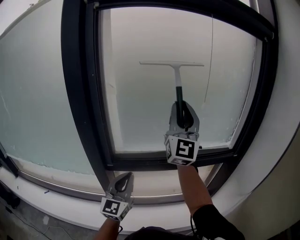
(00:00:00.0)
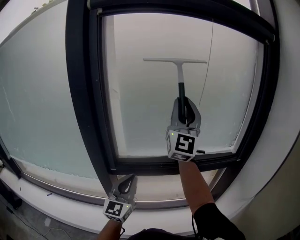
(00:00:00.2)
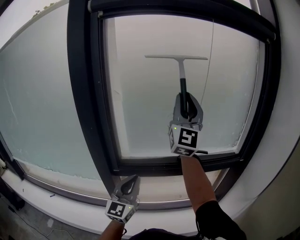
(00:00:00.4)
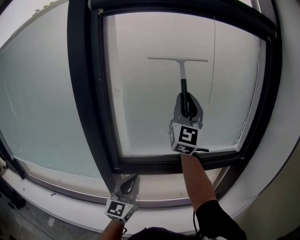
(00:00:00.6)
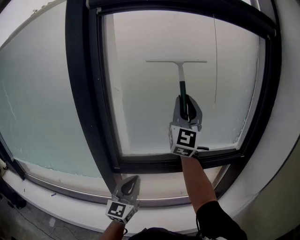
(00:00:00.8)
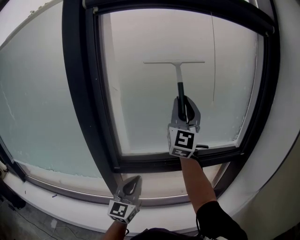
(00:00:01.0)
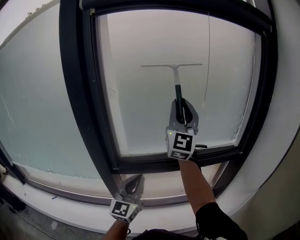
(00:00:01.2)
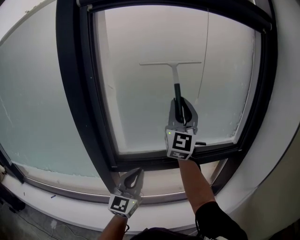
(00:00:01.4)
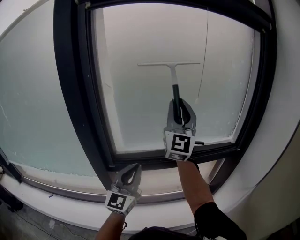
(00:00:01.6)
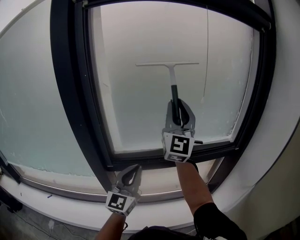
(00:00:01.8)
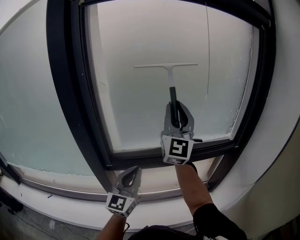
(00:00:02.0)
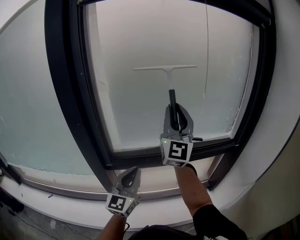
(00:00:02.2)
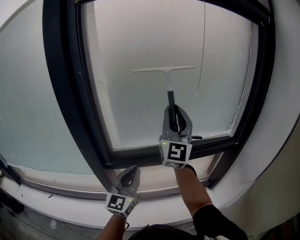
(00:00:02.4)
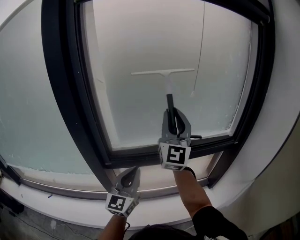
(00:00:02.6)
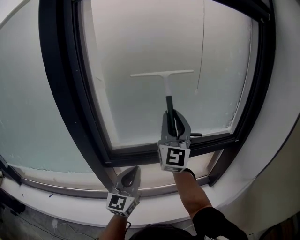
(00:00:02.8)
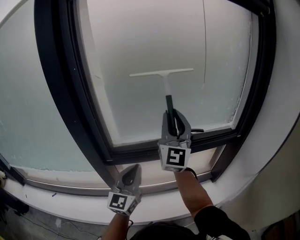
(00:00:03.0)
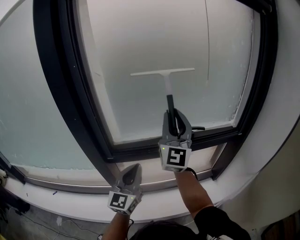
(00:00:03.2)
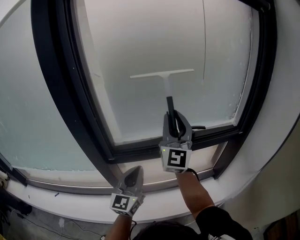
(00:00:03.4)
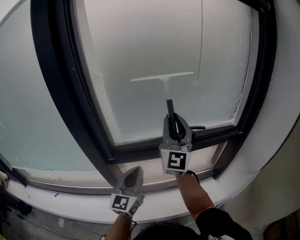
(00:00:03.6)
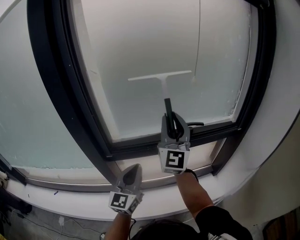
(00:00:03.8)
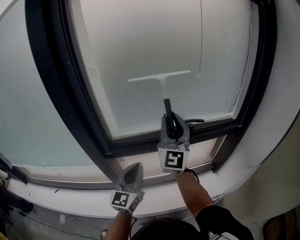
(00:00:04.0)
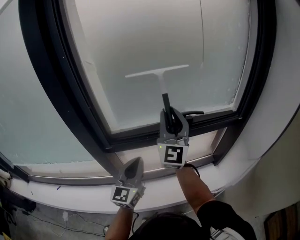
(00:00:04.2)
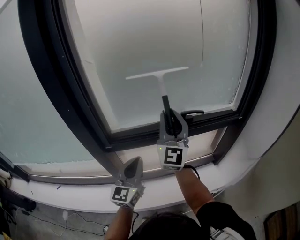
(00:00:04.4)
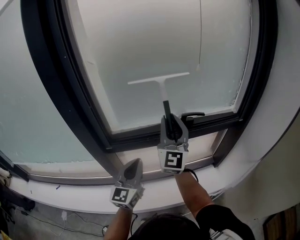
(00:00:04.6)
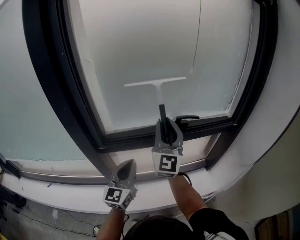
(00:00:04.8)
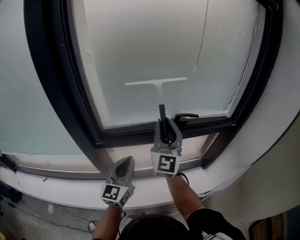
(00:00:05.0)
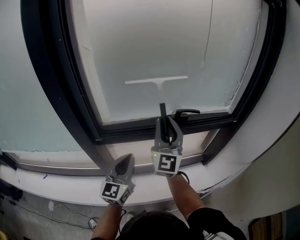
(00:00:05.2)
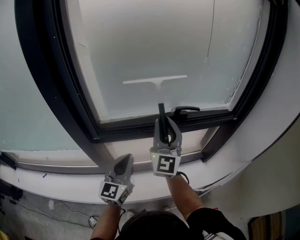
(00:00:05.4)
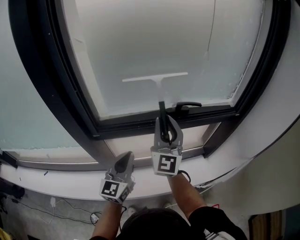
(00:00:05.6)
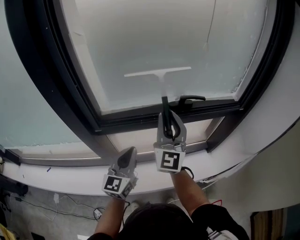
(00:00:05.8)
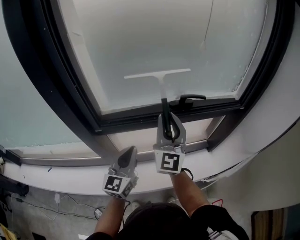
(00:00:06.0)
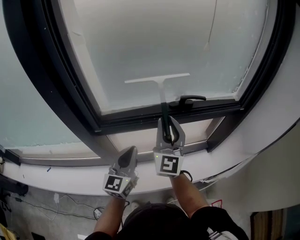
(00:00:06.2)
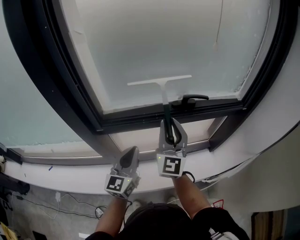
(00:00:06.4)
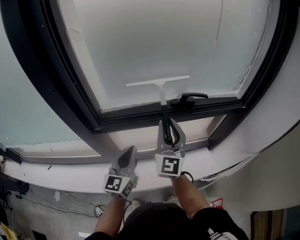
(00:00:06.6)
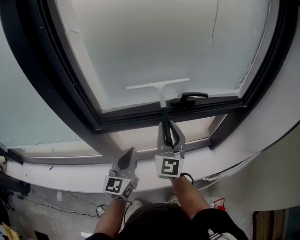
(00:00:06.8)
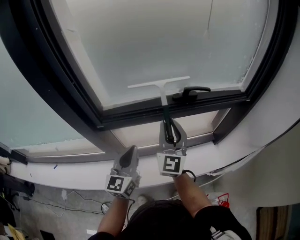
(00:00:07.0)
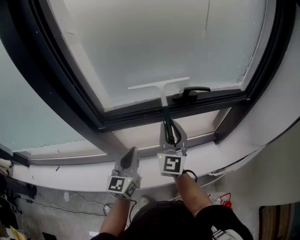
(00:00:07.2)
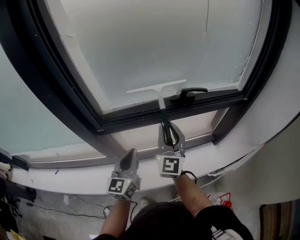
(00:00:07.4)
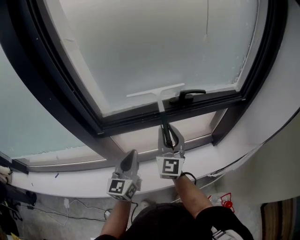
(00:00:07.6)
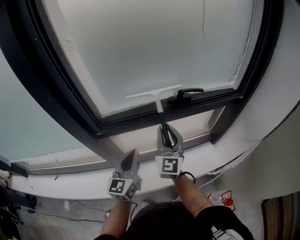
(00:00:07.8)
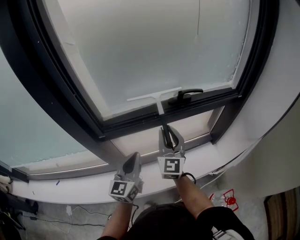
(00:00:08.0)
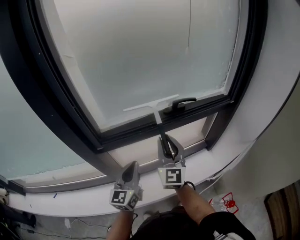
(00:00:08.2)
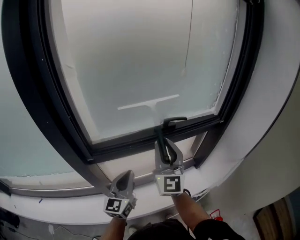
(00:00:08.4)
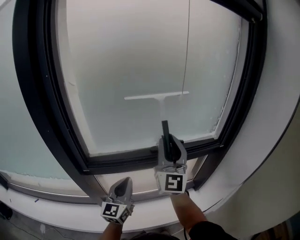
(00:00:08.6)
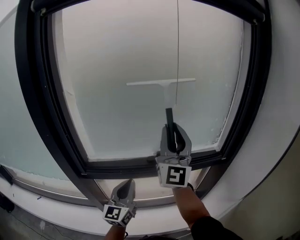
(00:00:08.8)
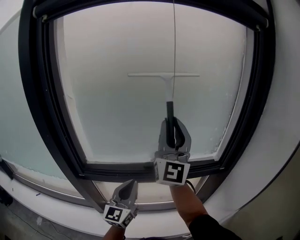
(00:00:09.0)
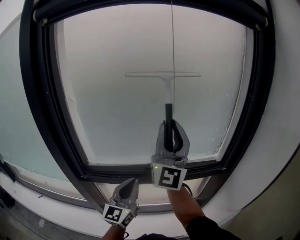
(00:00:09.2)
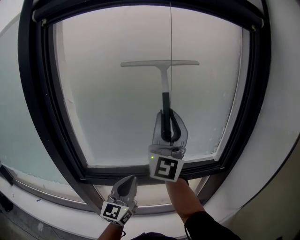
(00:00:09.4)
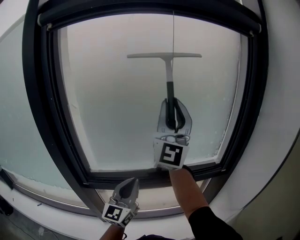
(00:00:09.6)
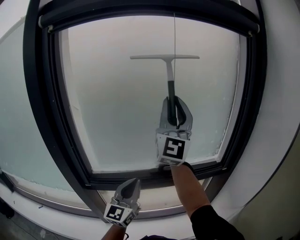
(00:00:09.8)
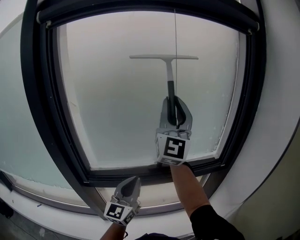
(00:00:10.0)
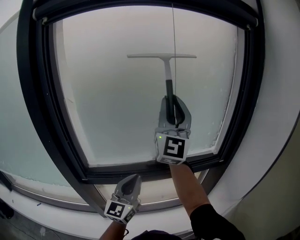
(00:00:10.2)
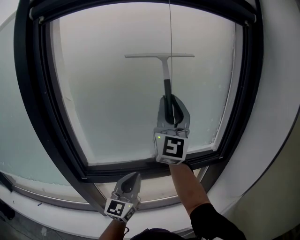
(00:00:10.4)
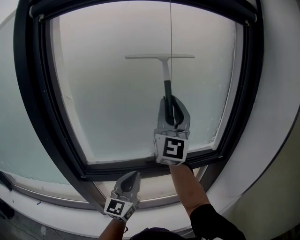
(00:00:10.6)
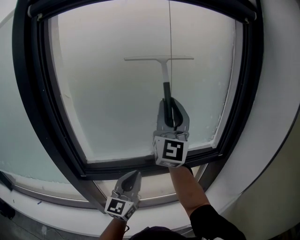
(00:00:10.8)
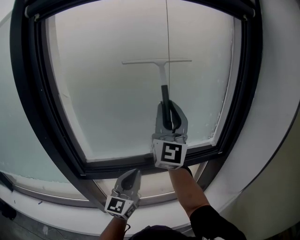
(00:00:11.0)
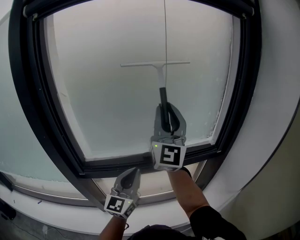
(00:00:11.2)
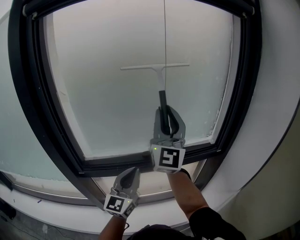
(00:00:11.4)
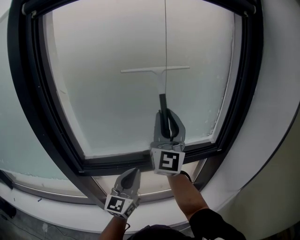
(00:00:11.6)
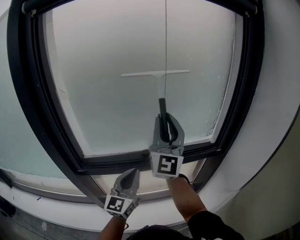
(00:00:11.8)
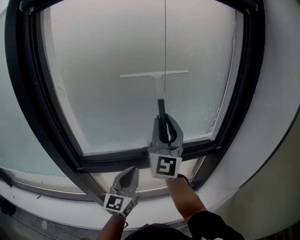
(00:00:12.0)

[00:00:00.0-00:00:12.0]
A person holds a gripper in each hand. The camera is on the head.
00:00:00.0 to 00:00:01.6: There are only small adjustments of the grippers.
00:00:01.6 to 00:00:03.0: The right gripper travels downward by roughly 10 cm.
00:00:03.0 to 00:00:04.4: The right gripper shifts about 5 cm downward.
00:00:04.4 to 00:00:06.0: The right gripper heads downward, covering roughly 10 cm.
00:00:06.0 to 00:00:07.6: The right gripper heads downward, covering some 10 cm.
00:00:07.6 to 00:00:09.0: The left gripper goes roughly 20 cm to the right, upward and forward. Meanwhile the right gripper moves upward, some 30 cm, and angles its fingers upward, by some 30 degrees.
00:00:09.0 to 00:00:10.4: The right gripper goes some 5 cm upward.
00:00:10.4 to 00:00:12.0: The right gripper heads downward, covering approximately 10 cm.

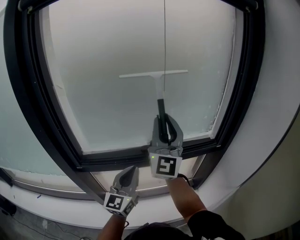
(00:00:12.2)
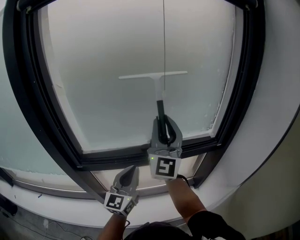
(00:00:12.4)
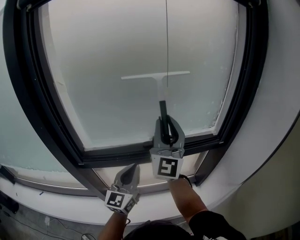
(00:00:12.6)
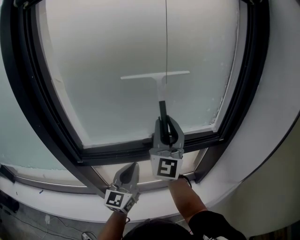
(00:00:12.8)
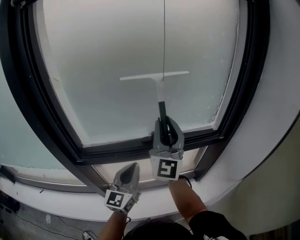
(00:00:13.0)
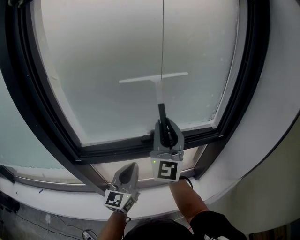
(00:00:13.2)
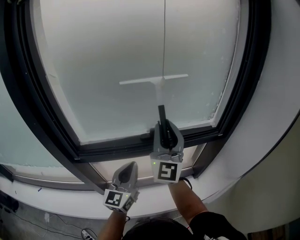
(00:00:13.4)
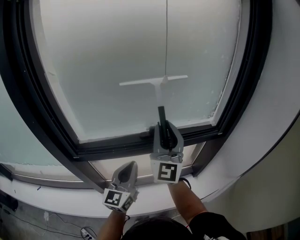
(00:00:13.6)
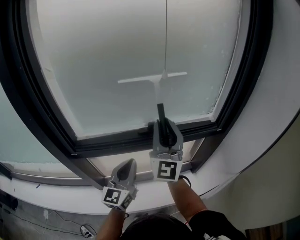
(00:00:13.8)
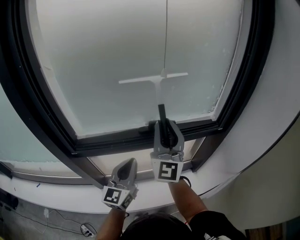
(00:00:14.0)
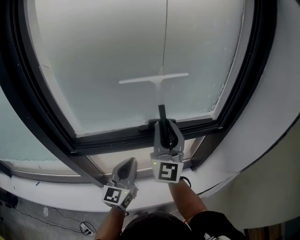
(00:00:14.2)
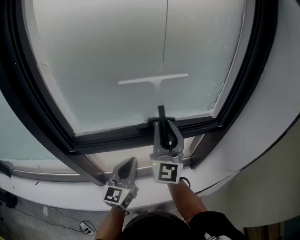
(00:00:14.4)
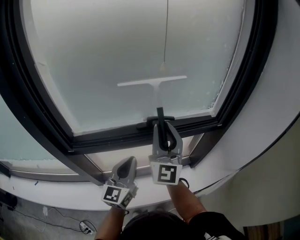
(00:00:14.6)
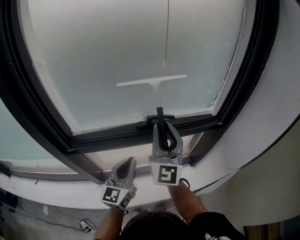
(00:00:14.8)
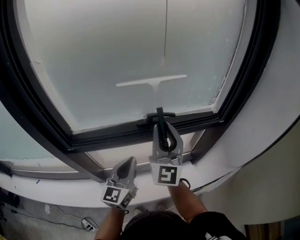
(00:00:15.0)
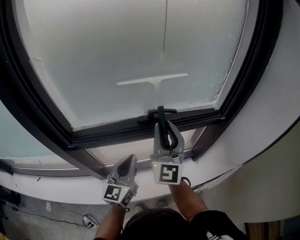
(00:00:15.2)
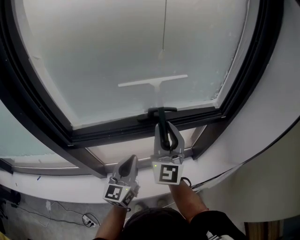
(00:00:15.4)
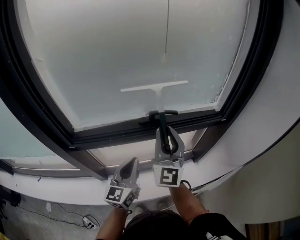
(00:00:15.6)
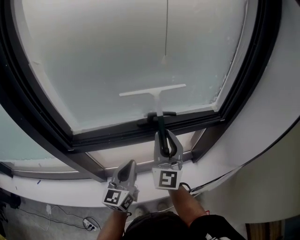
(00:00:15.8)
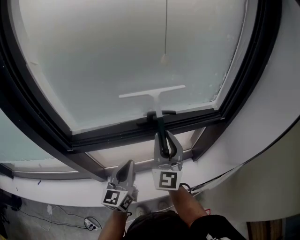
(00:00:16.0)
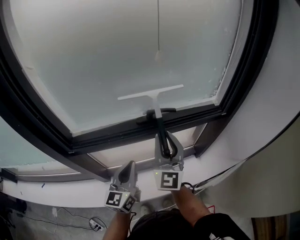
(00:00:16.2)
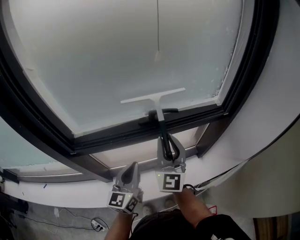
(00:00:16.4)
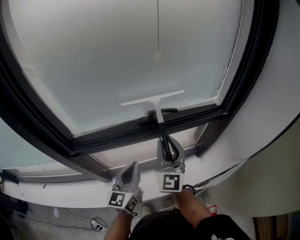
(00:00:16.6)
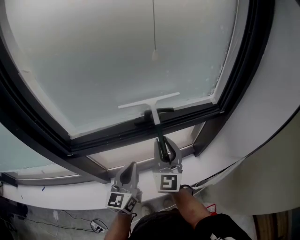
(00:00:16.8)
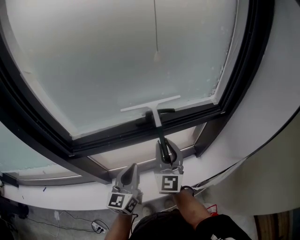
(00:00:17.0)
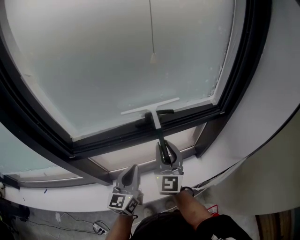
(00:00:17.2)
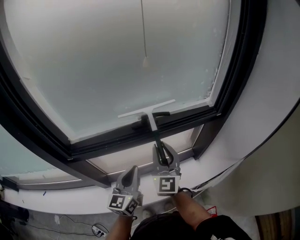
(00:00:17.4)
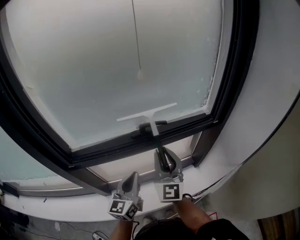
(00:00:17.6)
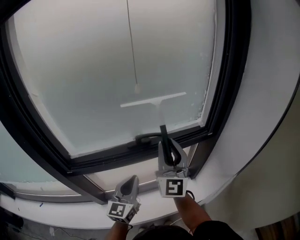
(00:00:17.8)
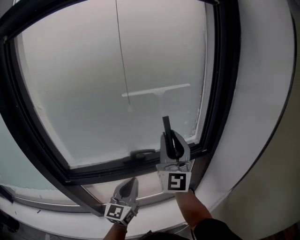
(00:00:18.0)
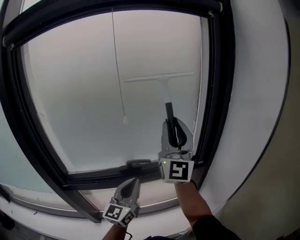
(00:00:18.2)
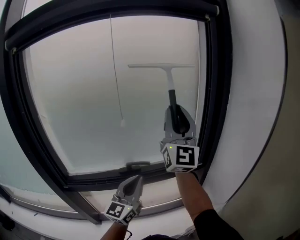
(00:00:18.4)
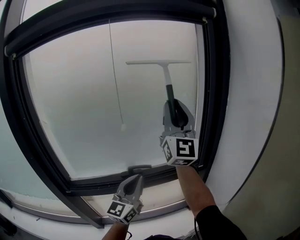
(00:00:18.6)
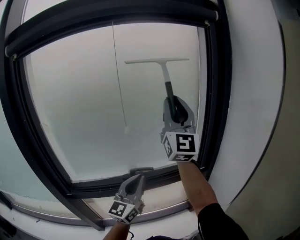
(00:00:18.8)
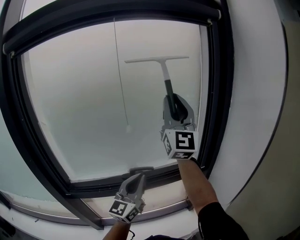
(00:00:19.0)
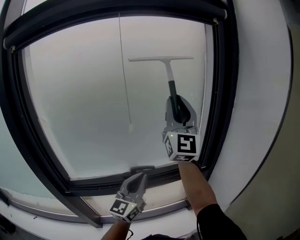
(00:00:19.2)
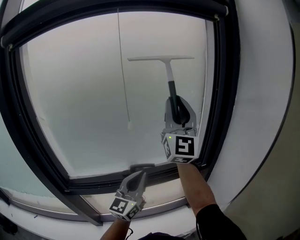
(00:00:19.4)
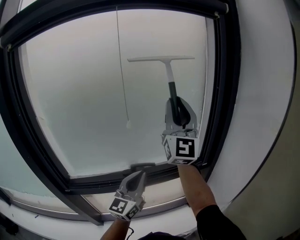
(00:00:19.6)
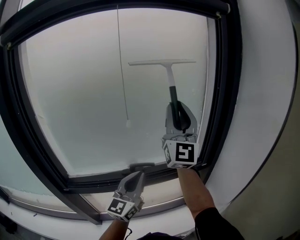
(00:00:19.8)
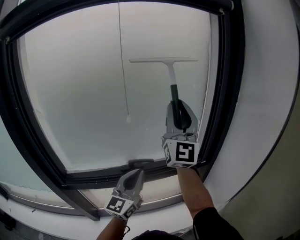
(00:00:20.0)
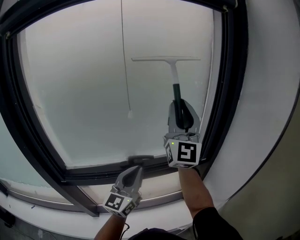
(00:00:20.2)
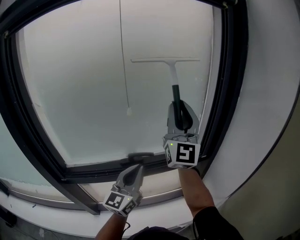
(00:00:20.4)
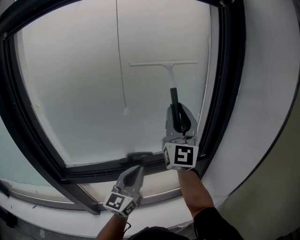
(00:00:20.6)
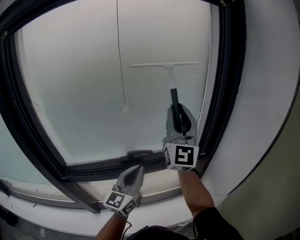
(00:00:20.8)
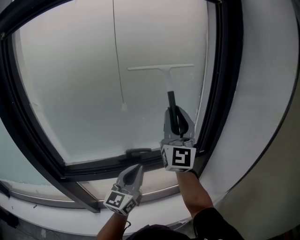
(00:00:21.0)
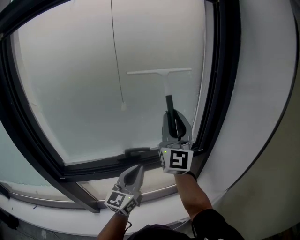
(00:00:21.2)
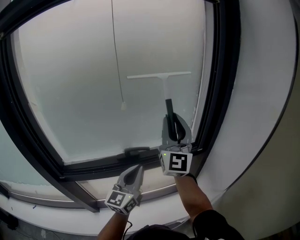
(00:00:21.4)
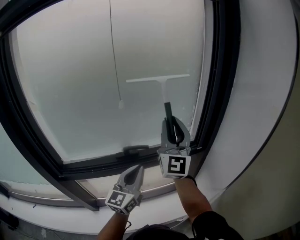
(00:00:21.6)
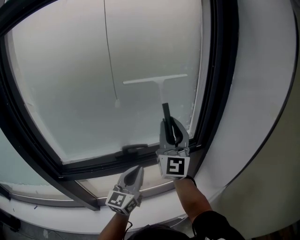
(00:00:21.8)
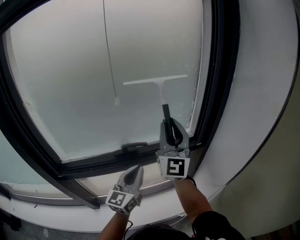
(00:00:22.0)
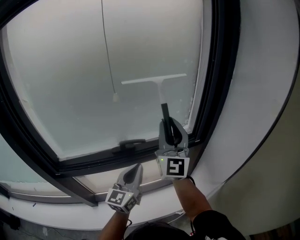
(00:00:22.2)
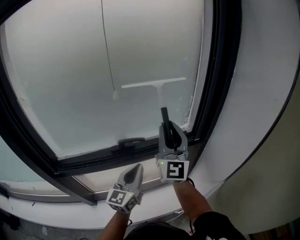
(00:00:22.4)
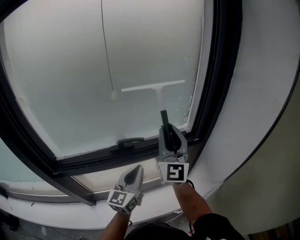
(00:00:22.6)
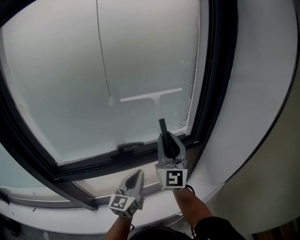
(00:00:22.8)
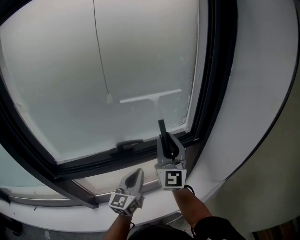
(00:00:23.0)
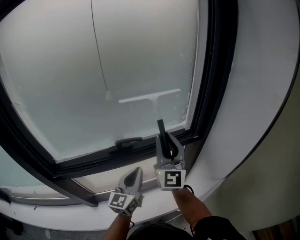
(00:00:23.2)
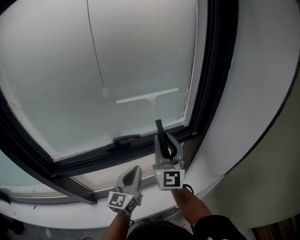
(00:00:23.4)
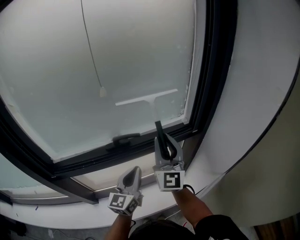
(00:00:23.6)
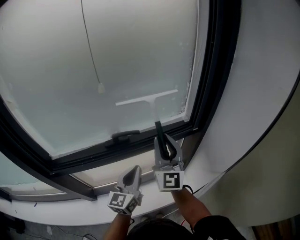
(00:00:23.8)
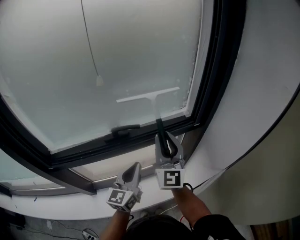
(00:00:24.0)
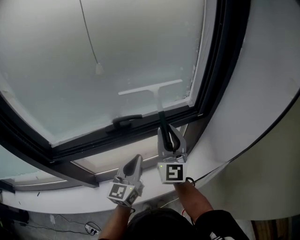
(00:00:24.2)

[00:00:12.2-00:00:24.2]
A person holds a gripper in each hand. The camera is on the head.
00:00:12.2 to 00:00:13.8: The right gripper goes approximately 10 cm downward.
00:00:13.8 to 00:00:15.2: The right gripper heads downward, covering some 5 cm.
00:00:15.2 to 00:00:16.6: The right gripper shifts approximately 10 cm downward.
00:00:16.6 to 00:00:18.2: The left gripper is displaced upward, to the right and forward by some 20 cm, and changes its angle by approximately 20 degrees; the right gripper shifts some 30 cm upward and to the right, and swivels approximately 30 degrees.
00:00:19.8 to 00:00:21.2: The right gripper heads downward, covering roughly 10 cm.
00:00:21.2 to 00:00:22.6: The right gripper goes approximately 10 cm downward, while the left gripper is displaced downward by approximately 5 cm.
00:00:22.6 to 00:00:24.2: The right gripper heads downward, covering about 10 cm.
